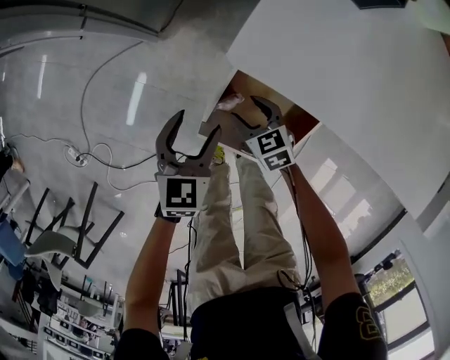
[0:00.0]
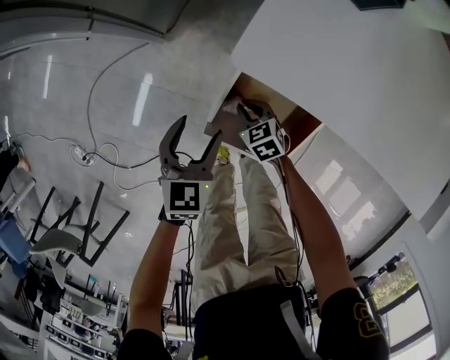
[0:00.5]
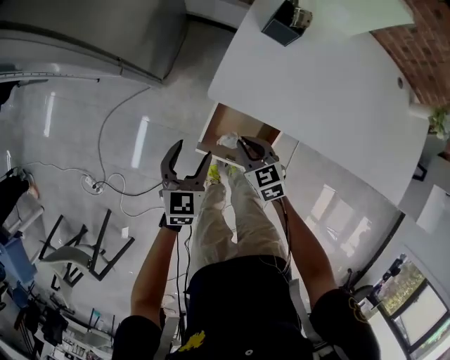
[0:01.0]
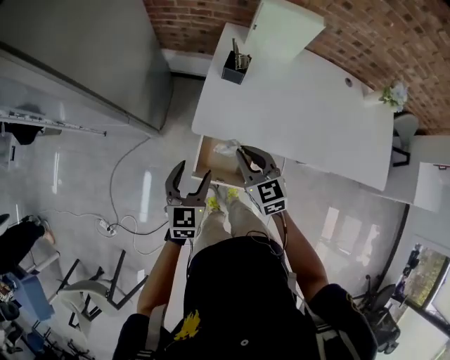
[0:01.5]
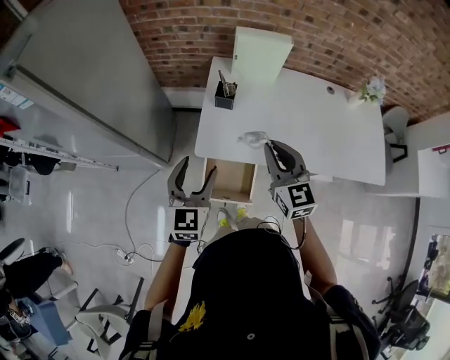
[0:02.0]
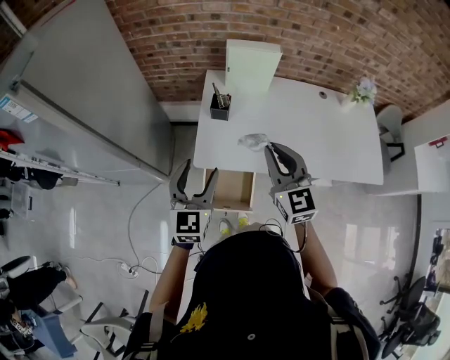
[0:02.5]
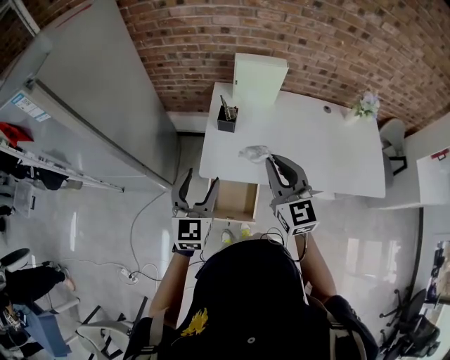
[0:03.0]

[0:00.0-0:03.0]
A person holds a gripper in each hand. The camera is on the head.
0:00.0 to 0:01.5: Both grippers travel together upward, about 40 cm. The right gripper rotates roughly 30 degrees, and closes.
0:01.5 to 0:03.0: The grippers both shift upward by approximately 20 cm. The right gripper turns by about 30 degrees.

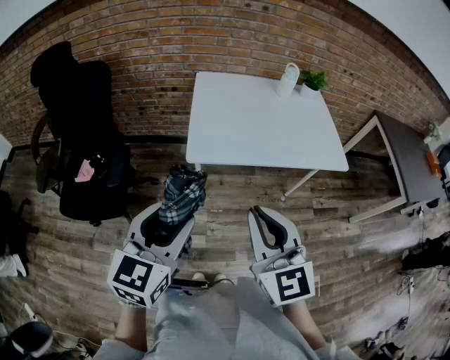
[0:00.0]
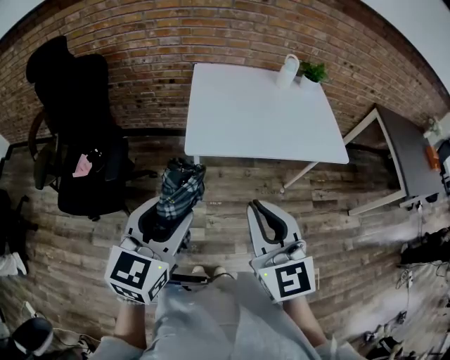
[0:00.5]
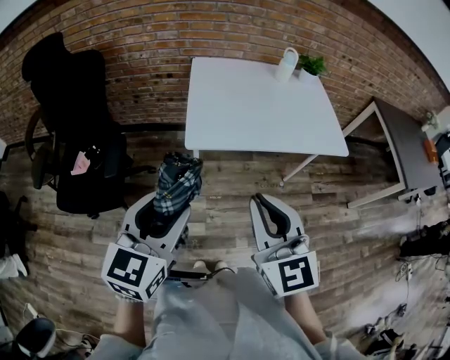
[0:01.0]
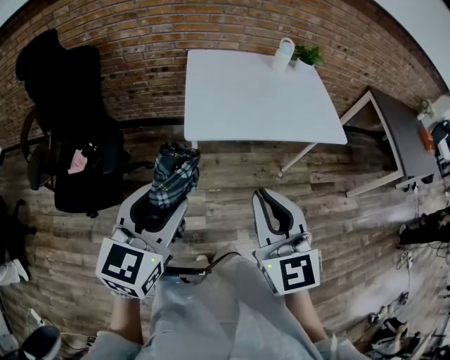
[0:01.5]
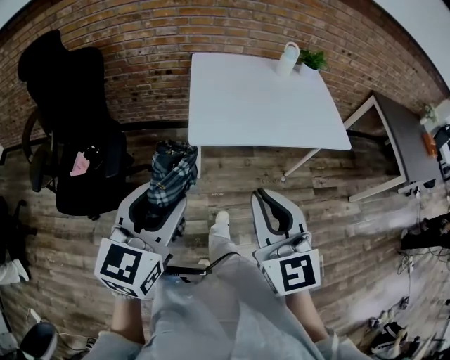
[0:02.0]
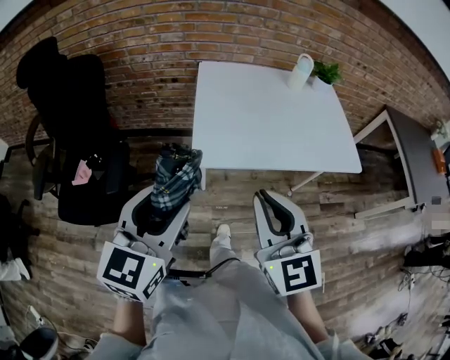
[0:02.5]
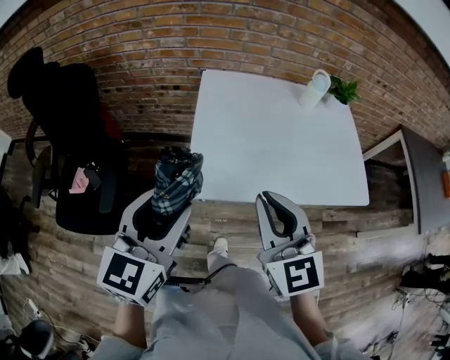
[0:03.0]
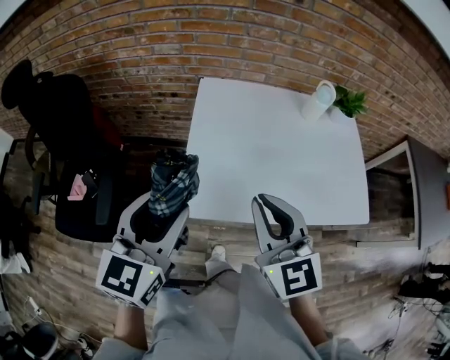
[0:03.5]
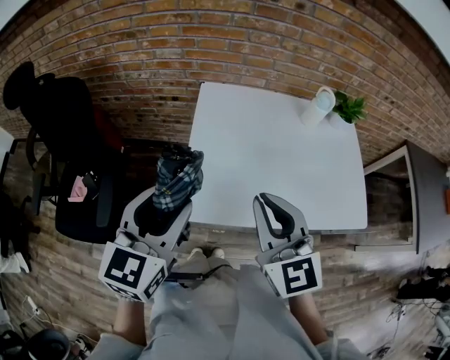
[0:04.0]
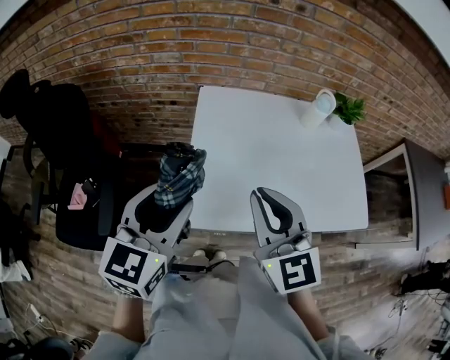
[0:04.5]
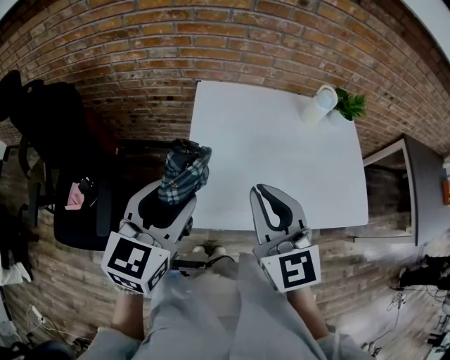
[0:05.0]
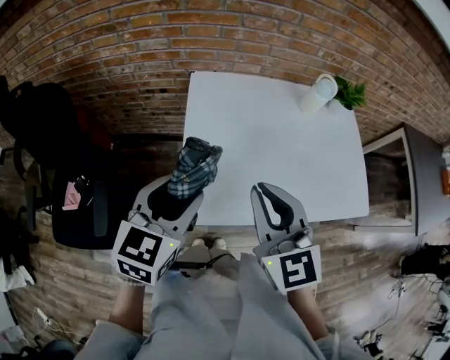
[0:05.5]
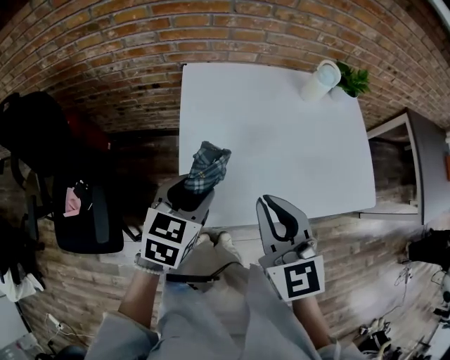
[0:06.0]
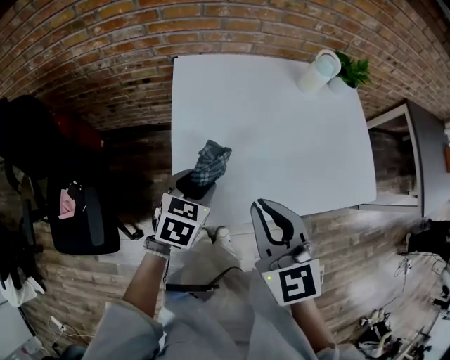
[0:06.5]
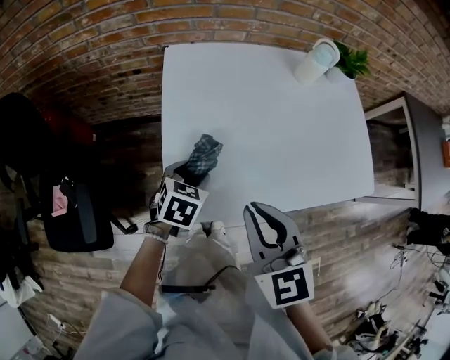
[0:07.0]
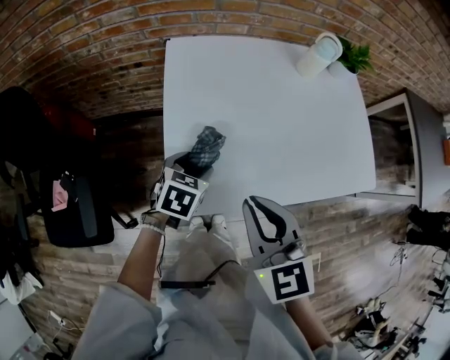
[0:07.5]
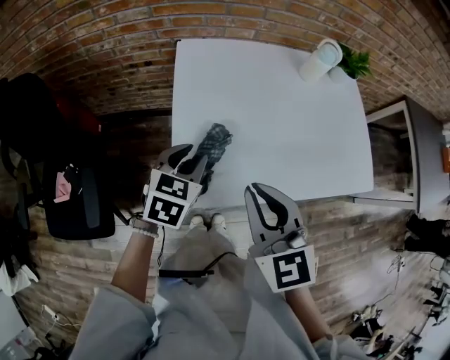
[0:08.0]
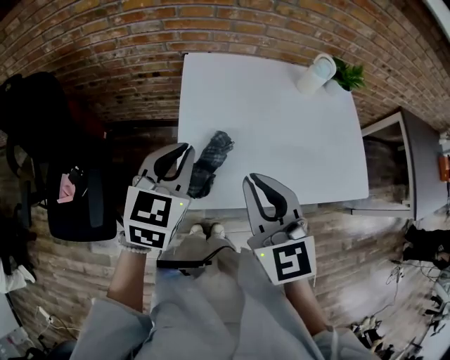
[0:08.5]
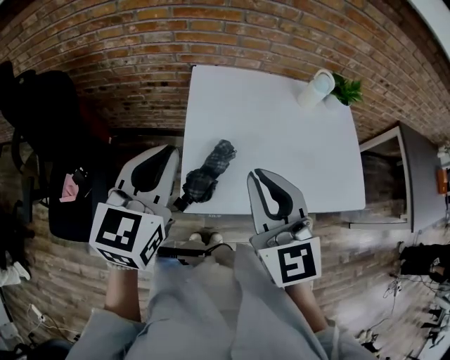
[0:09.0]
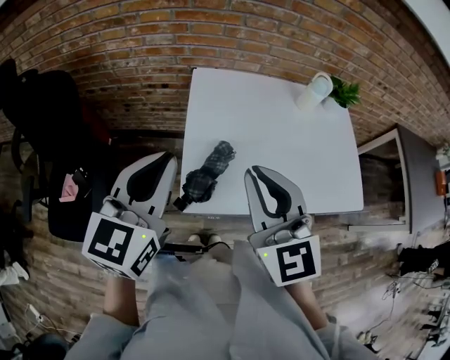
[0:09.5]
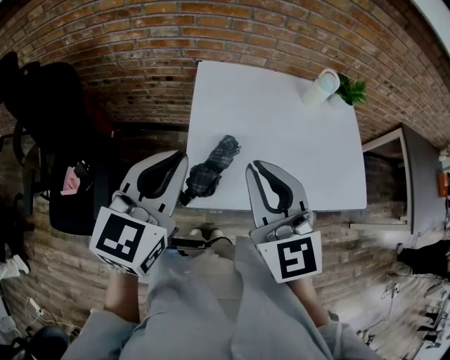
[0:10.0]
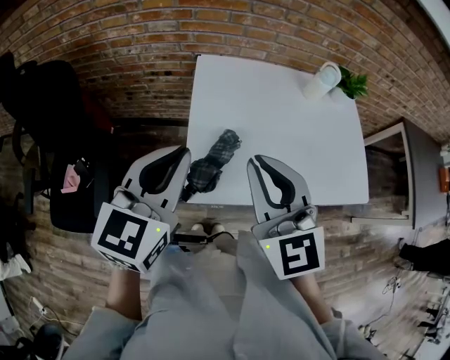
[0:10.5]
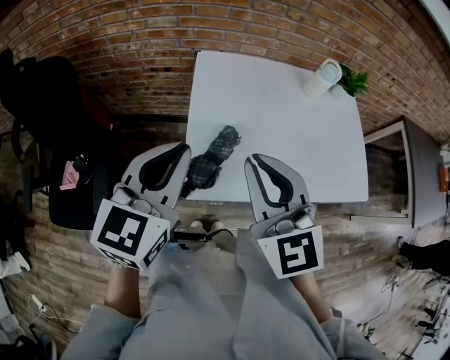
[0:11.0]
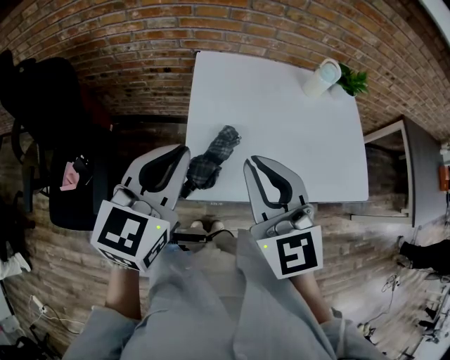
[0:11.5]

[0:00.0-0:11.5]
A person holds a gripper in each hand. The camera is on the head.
0:00.0 to 0:02.0: The left gripper moves to the left, approximately 5 cm.
0:02.0 to 0:04.0: The grippers both shift forward by about 35 cm.
0:04.0 to 0:06.0: The right gripper goes about 5 cm forward, while the left gripper travels downward and forward by roughly 20 cm, and swivels about 20 degrees.
0:06.0 to 0:07.5: The right gripper moves downward, roughly 5 cm; the left gripper shifts approximately 15 cm downward.
0:07.5 to 0:09.5: The right gripper is displaced upward by roughly 15 cm. Meanwhile the left gripper goes approximately 30 cm upward, tilts its fingers about 40 degrees upward, and closes its fingers.
0:09.5 to 0:11.5: There are only small adjustments of the grippers.

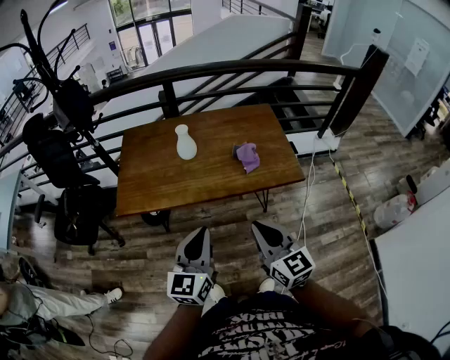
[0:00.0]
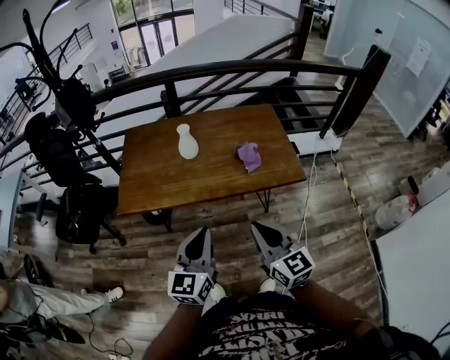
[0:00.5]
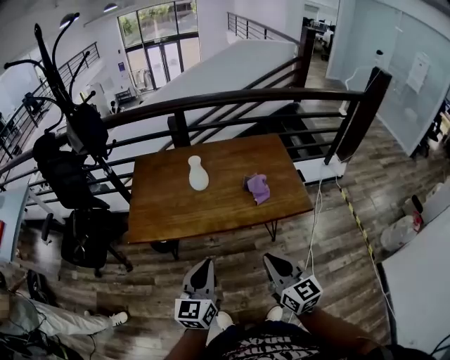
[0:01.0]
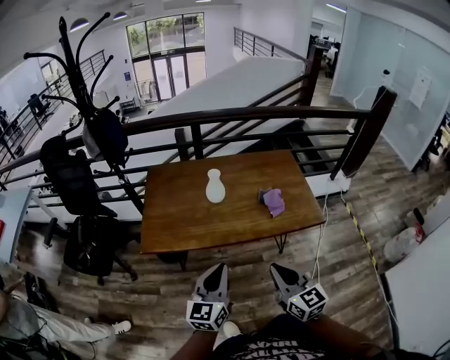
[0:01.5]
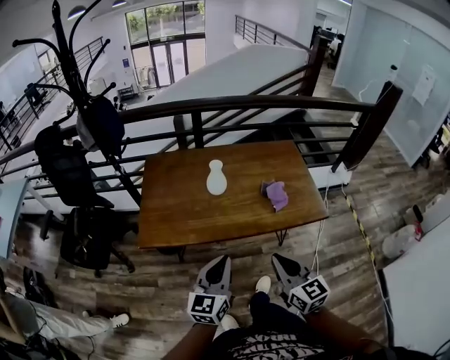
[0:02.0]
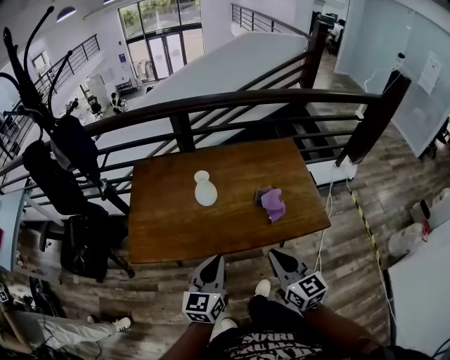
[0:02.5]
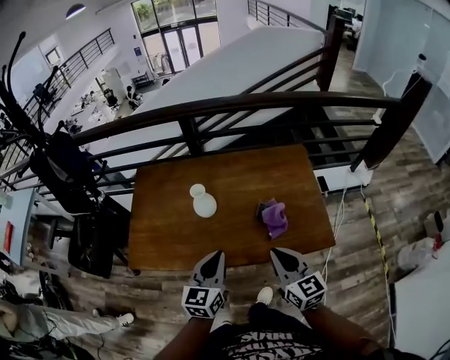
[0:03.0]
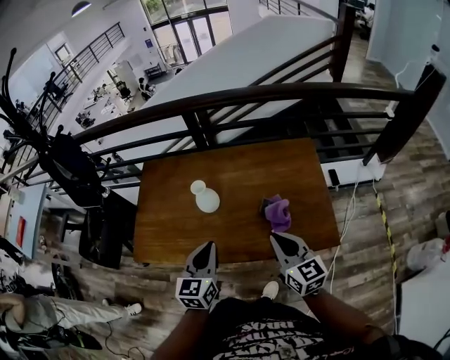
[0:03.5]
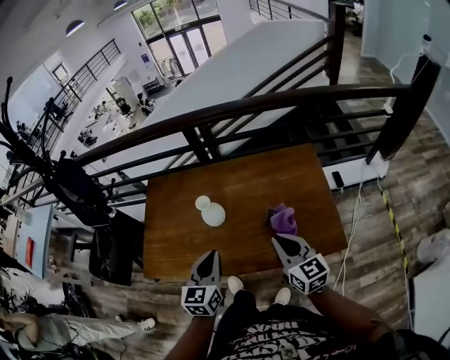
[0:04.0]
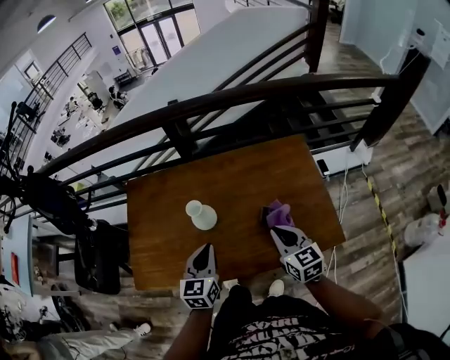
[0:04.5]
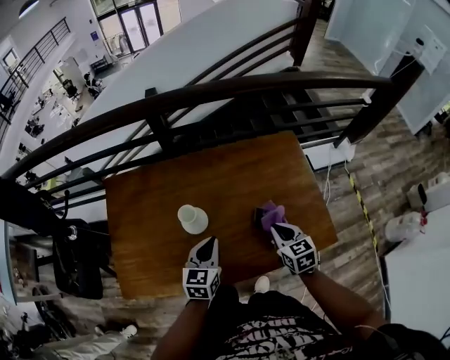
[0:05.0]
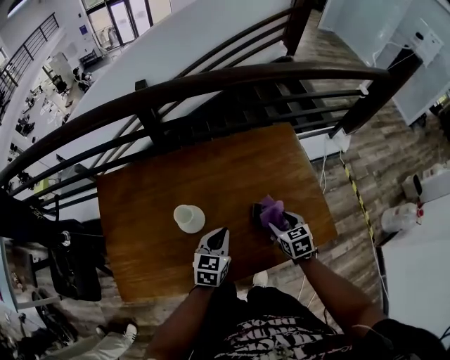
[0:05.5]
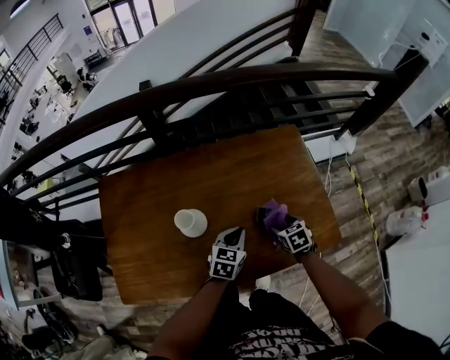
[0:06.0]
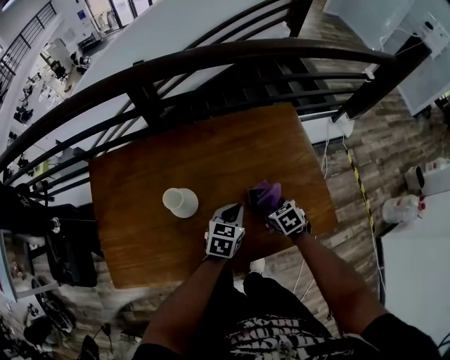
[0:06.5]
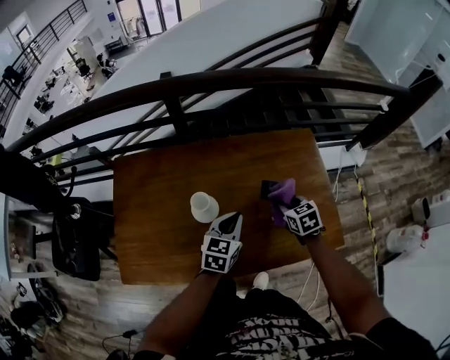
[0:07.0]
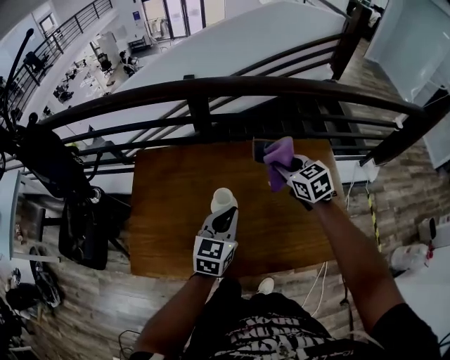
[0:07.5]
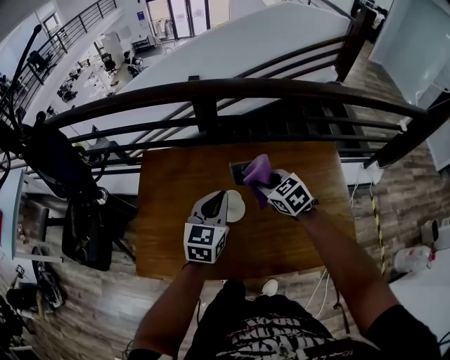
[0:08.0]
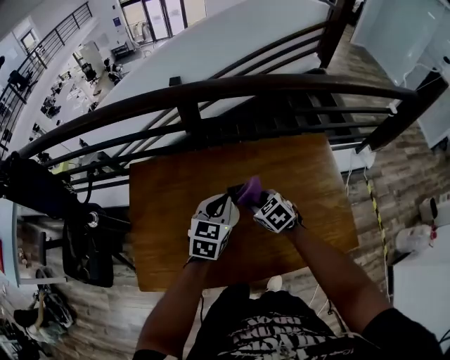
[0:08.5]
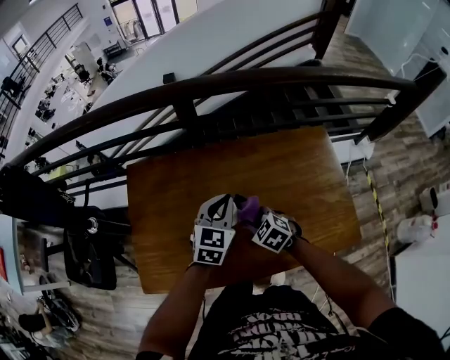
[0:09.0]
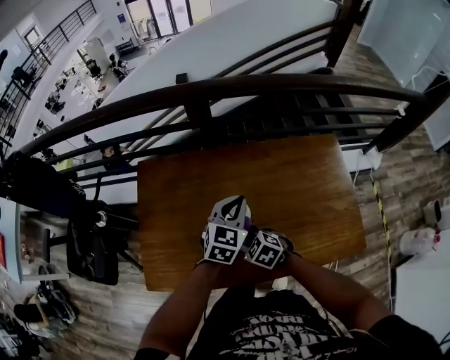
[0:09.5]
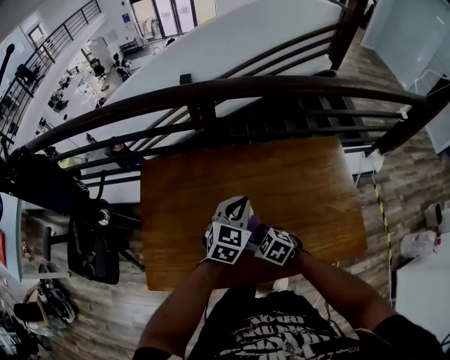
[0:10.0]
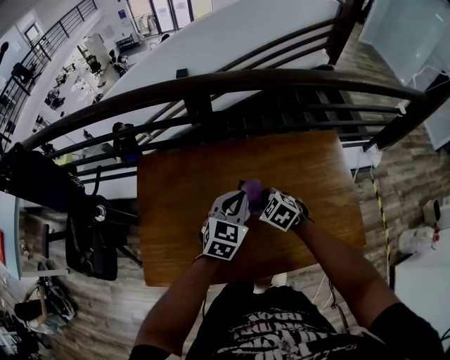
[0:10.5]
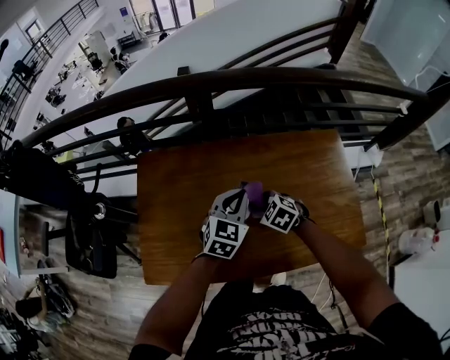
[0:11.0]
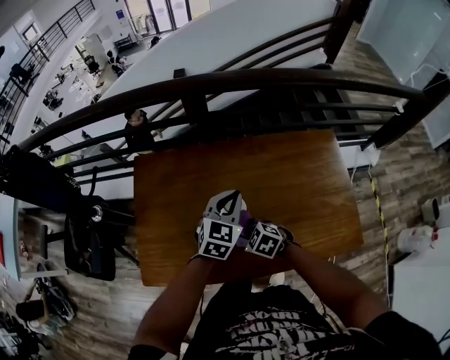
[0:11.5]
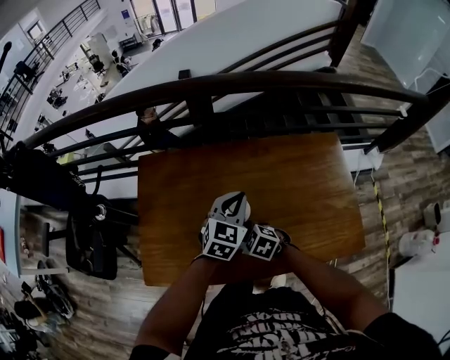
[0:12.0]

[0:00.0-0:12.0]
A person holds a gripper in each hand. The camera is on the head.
0:00.0 to 0:02.0: The grippers both shift to the left and forward by roughly 10 cm.
0:02.0 to 0:04.0: Both grippers move forward and to the right, roughly 30 cm.
0:04.0 to 0:06.0: The grippers both shift downward by some 25 cm. The left gripper turns by approximately 30 degrees; the right gripper tips its fingers downward by roughly 50 degrees, and opens up.
0:06.0 to 0:08.0: The left gripper moves approximately 25 cm, and swivels some 30 degrees, while the right gripper moves approximately 35 cm, turns by about 40 degrees, and closes its fingers.
0:08.0 to 0:10.0: The right gripper travels backward, downward and to the left by about 20 cm, and rotates approximately 20 degrees; the left gripper ends up about 5 cm from where it was.
0:10.0 to 0:12.0: The right gripper reaches about 5 cm to the right, then returns.
